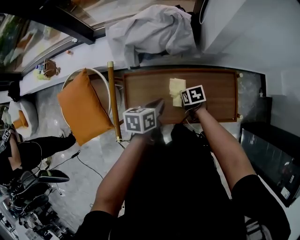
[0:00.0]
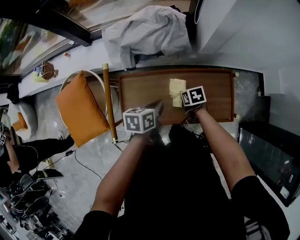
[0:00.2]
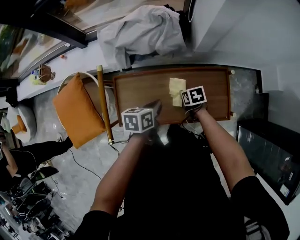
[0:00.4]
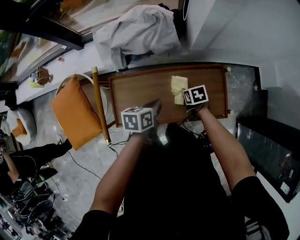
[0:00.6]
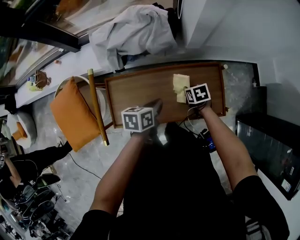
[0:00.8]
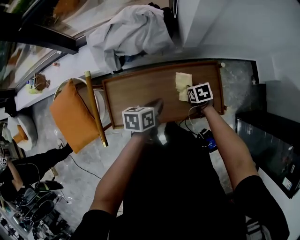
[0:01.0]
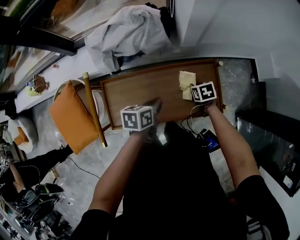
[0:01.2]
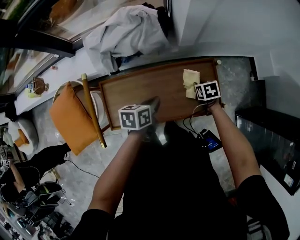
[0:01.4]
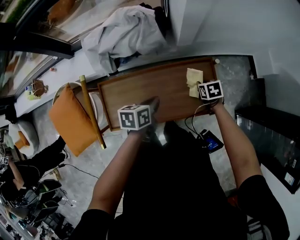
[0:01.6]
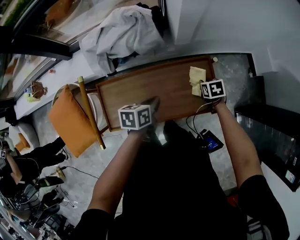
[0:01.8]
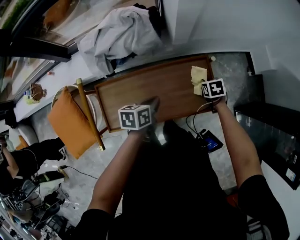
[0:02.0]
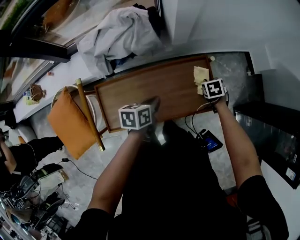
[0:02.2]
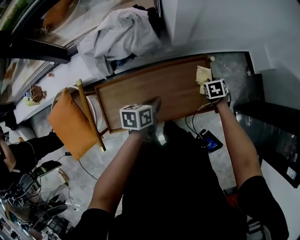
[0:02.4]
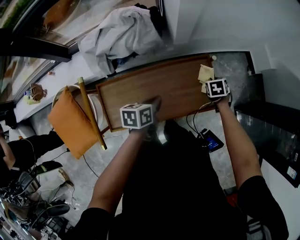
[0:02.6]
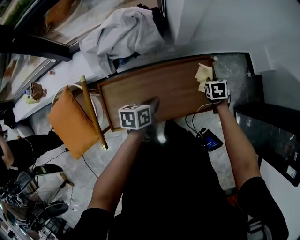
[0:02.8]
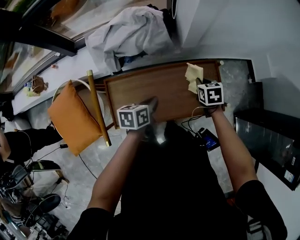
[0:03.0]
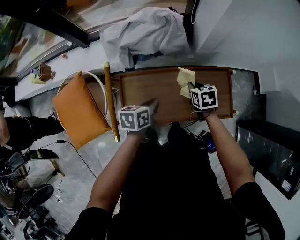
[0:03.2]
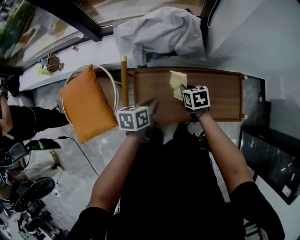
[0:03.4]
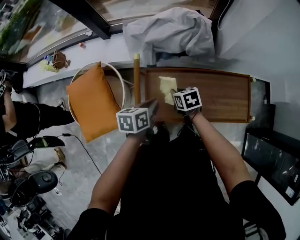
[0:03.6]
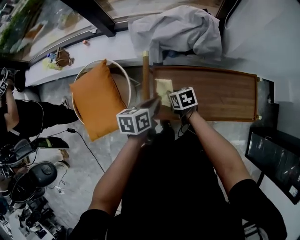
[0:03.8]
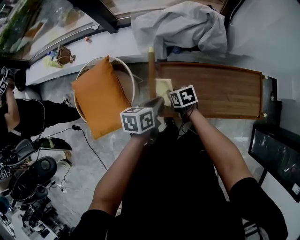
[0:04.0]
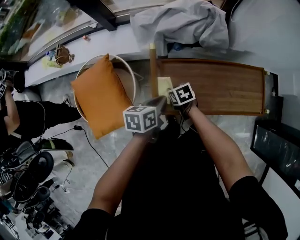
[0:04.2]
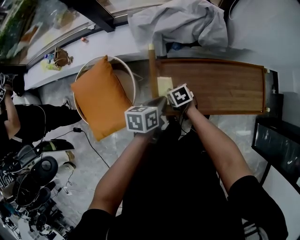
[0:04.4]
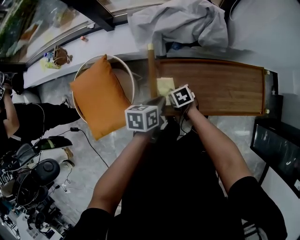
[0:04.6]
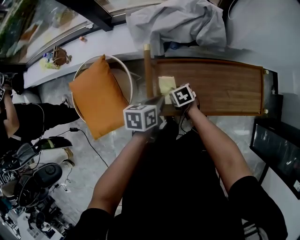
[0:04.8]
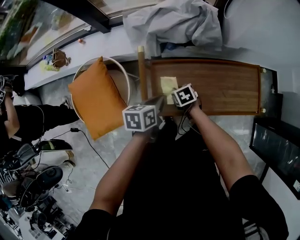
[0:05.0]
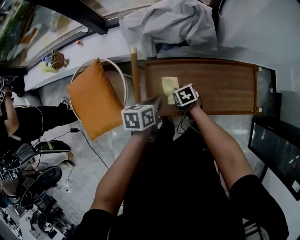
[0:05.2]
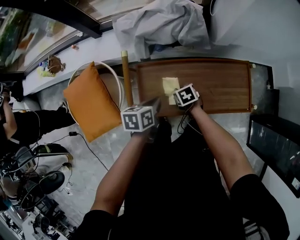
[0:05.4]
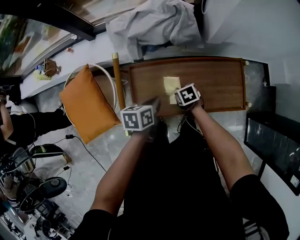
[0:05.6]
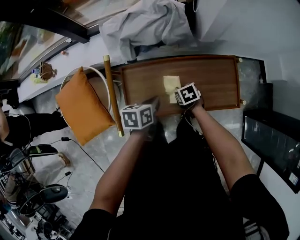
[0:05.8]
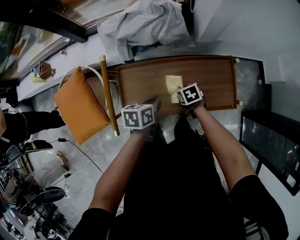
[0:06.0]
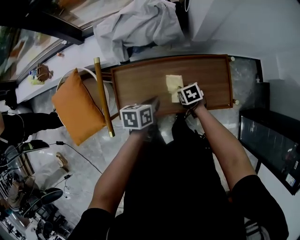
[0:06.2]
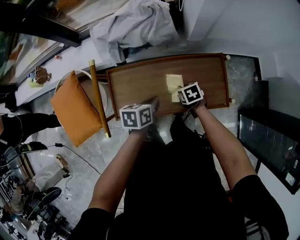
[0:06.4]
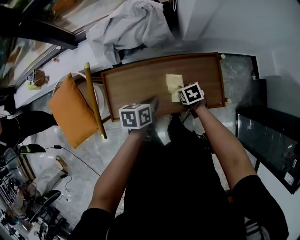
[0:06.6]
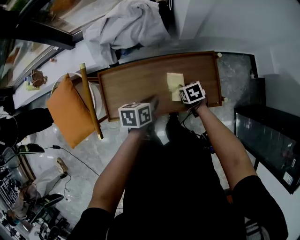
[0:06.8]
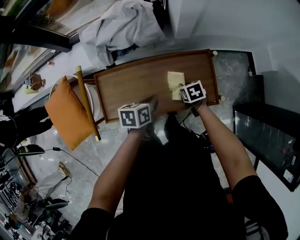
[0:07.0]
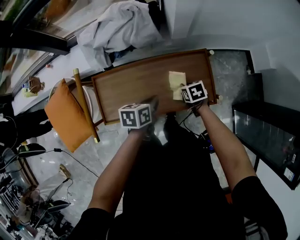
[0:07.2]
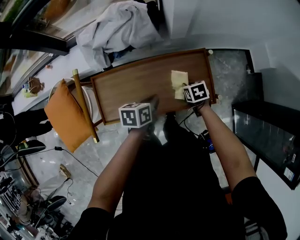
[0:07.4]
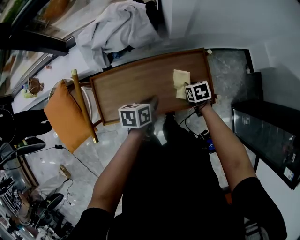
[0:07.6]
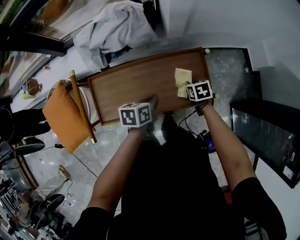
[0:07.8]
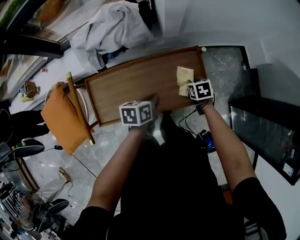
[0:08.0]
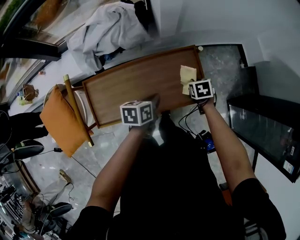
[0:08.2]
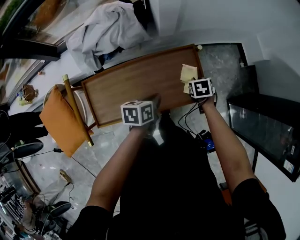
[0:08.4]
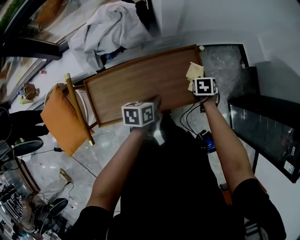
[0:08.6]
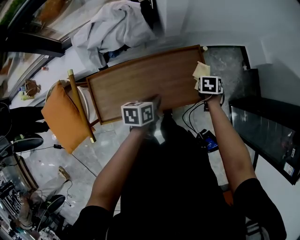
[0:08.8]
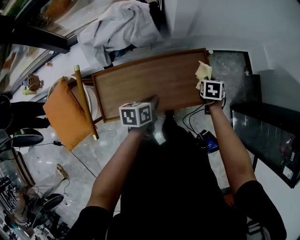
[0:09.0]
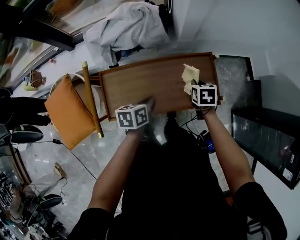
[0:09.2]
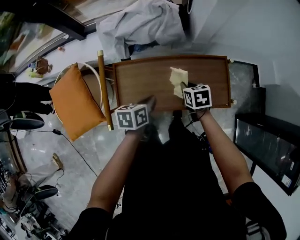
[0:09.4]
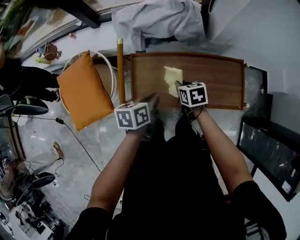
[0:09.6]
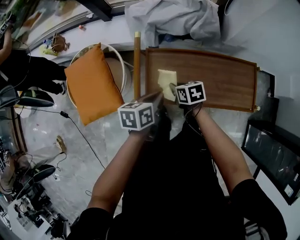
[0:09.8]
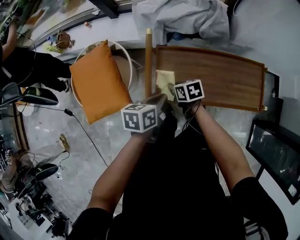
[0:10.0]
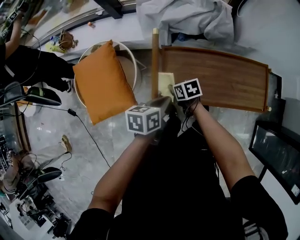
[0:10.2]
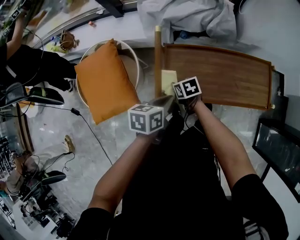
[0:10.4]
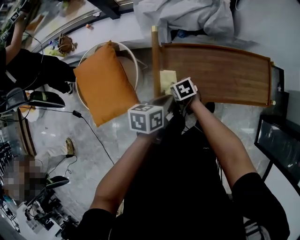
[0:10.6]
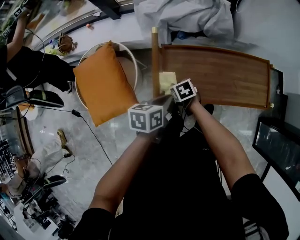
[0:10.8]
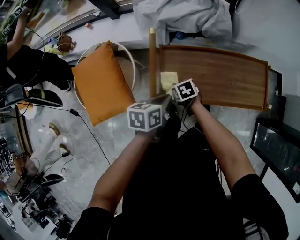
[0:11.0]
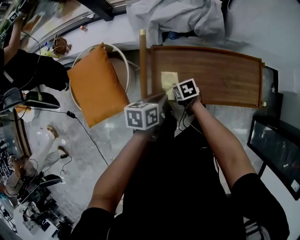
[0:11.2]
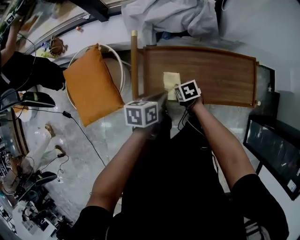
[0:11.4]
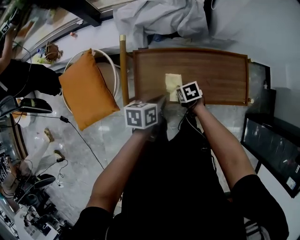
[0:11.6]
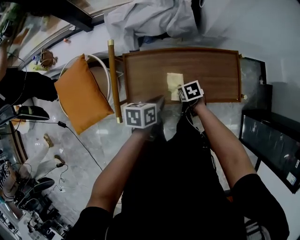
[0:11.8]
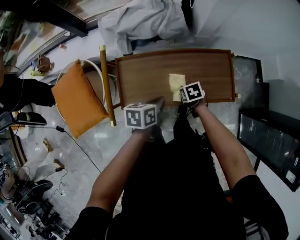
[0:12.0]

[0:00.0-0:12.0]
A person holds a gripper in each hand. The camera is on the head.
0:00.0 to 0:01.6: The right gripper travels to the right by some 20 cm, while the left gripper moves to the right, about 10 cm.
0:01.6 to 0:03.0: The right gripper moves upward and to the left, some 10 cm.
0:03.0 to 0:04.4: The left gripper moves approximately 25 cm, while the right gripper shifts by roughly 50 cm, and turns by some 30 degrees.
0:04.4 to 0:06.0: The grippers both shift to the right by roughly 25 cm.
0:06.0 to 0:07.6: The grippers both shift to the right by approximately 15 cm.
0:07.6 to 0:09.0: The right gripper ends up about 10 cm from where it was, and turns by some 30 degrees.
0:09.0 to 0:10.4: The left gripper moves approximately 30 cm. The right gripper shifts by roughly 60 cm, and changes its angle by roughly 50 degrees.
0:10.4 to 0:12.0: The left gripper shifts some 20 cm to the right. The right gripper shifts some 30 cm to the right.

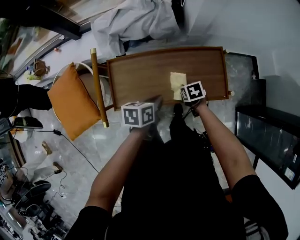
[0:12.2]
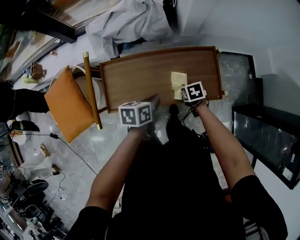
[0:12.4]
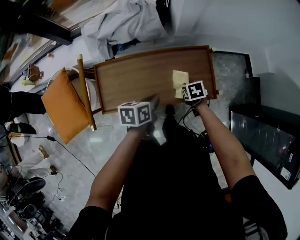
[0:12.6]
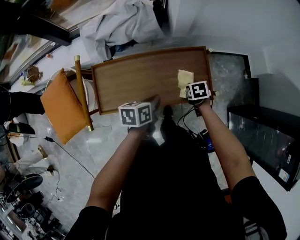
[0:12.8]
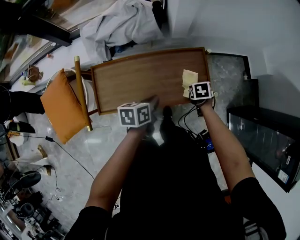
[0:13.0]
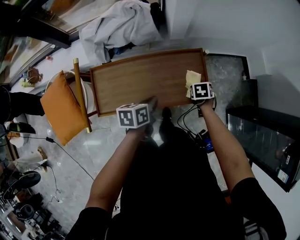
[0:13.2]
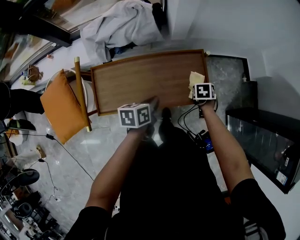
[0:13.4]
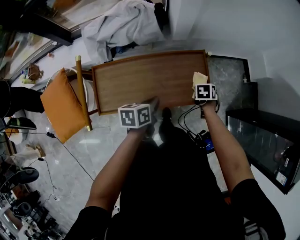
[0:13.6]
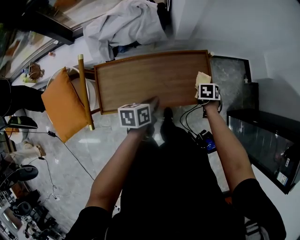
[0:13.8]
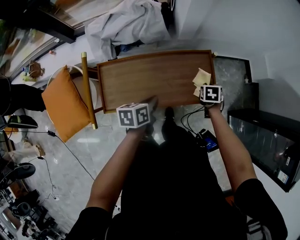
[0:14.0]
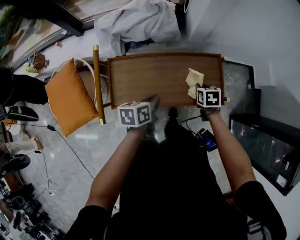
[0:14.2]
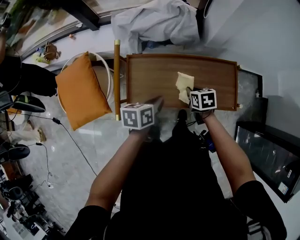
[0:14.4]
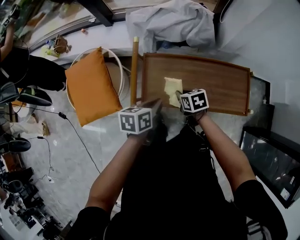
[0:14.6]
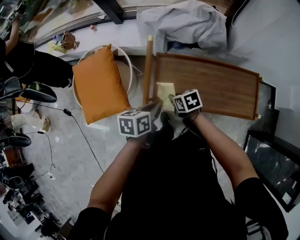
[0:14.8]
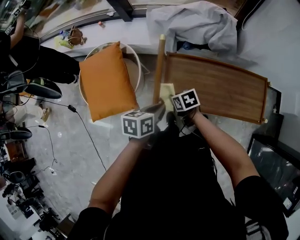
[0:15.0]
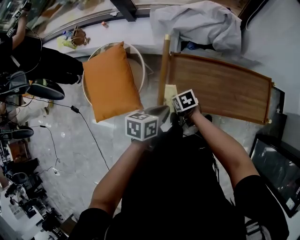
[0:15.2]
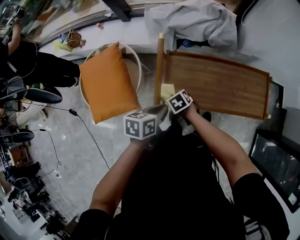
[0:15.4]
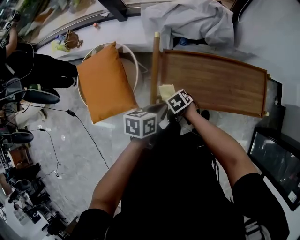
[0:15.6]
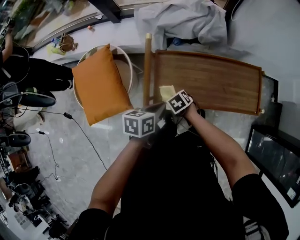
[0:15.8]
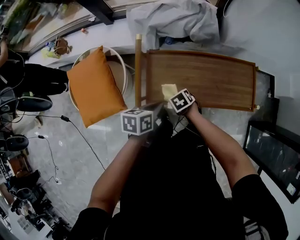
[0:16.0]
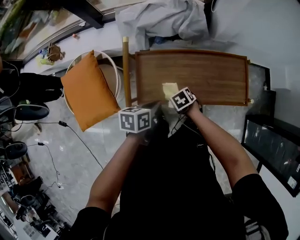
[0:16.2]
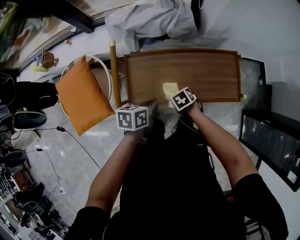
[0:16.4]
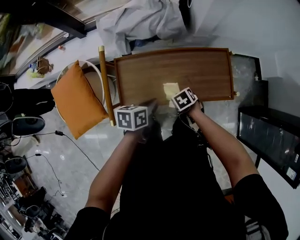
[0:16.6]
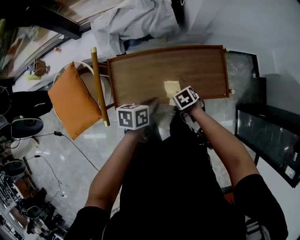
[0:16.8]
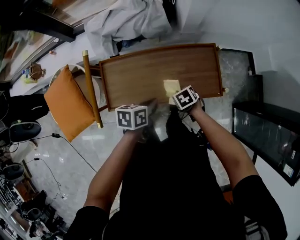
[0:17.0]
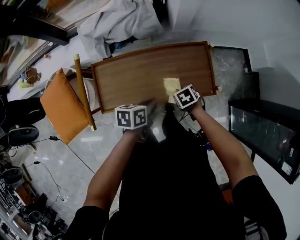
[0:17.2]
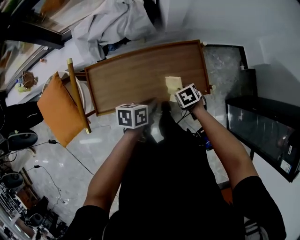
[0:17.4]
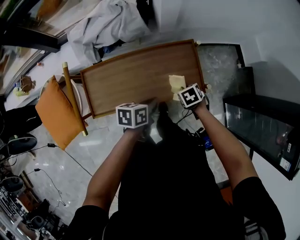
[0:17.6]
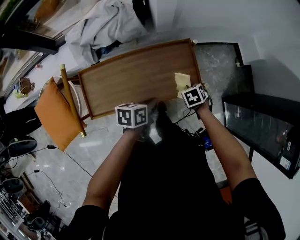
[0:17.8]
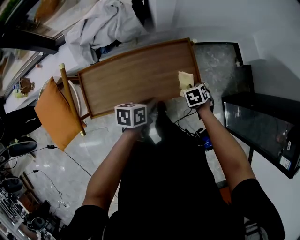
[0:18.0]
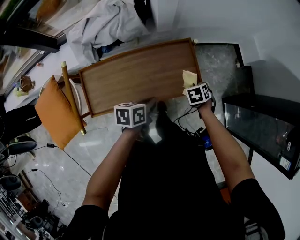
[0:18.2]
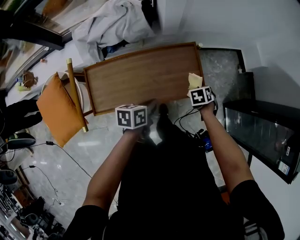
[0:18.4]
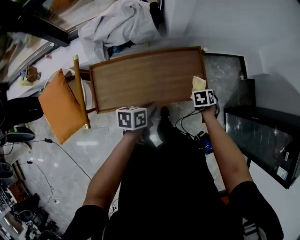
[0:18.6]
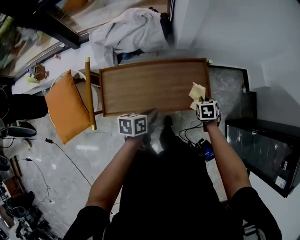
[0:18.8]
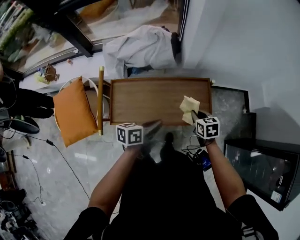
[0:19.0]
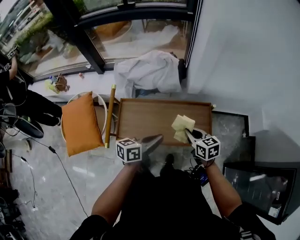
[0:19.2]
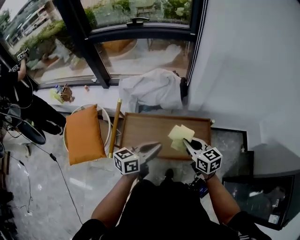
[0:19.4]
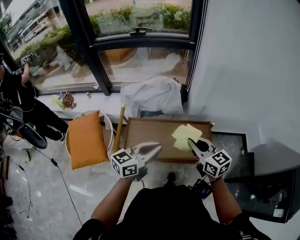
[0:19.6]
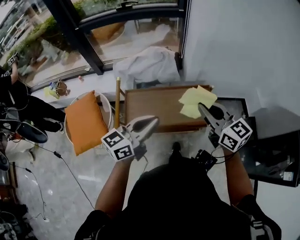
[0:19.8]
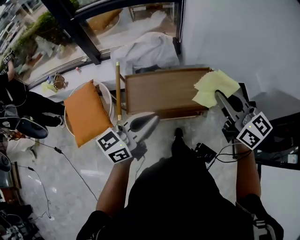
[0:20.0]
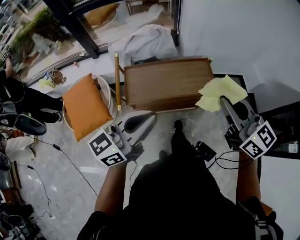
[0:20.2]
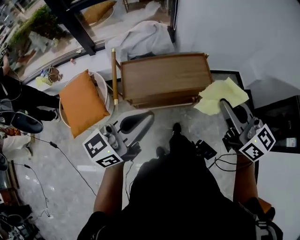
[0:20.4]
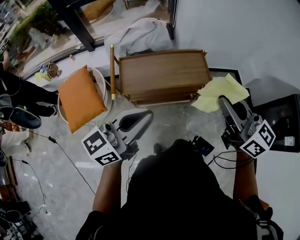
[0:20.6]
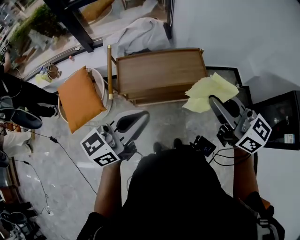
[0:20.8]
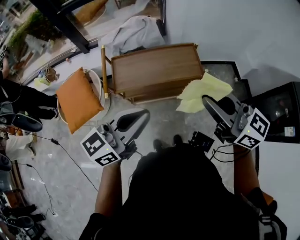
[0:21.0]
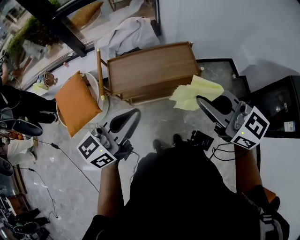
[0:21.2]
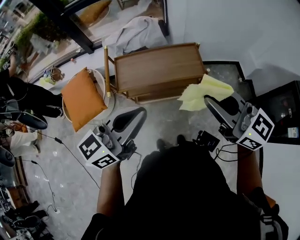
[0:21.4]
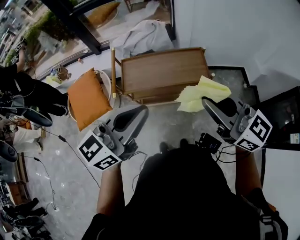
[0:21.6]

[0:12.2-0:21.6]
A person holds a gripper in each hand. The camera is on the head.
0:12.2 to 0:13.8: The right gripper changes place by about 25 cm, and swivels about 30 degrees. Meanwhile the left gripper ends up roughly 5 cm from where it was.
0:13.8 to 0:15.4: The right gripper shifts by roughly 60 cm, and turns by approximately 50 degrees; the left gripper shifts by approximately 30 cm.
0:15.4 to 0:17.0: The left gripper shifts by some 25 cm; the right gripper ends up some 35 cm from where it was.
0:17.0 to 0:18.4: The left gripper moves roughly 10 cm. Meanwhile the right gripper ends up roughly 20 cm from where it was, and swivels some 30 degrees.
0:18.4 to 0:20.0: The two grippers go some 40 cm upward. The right gripper angles its fingers upward, by some 70 degrees; the left gripper angles its fingers upward, by approximately 50 degrees.
0:20.0 to 0:21.6: The right gripper goes roughly 15 cm backward; the left gripper shifts roughly 15 cm backward and upward.

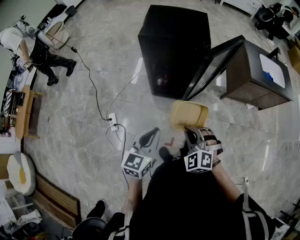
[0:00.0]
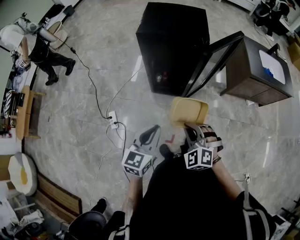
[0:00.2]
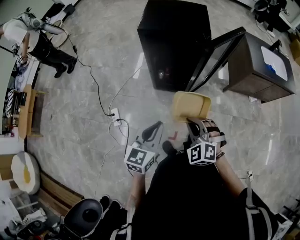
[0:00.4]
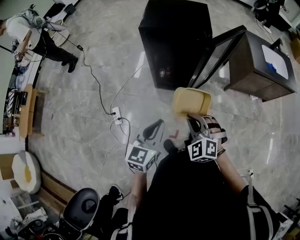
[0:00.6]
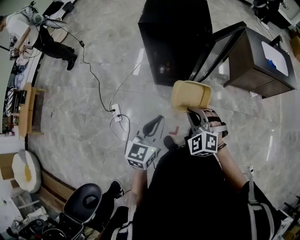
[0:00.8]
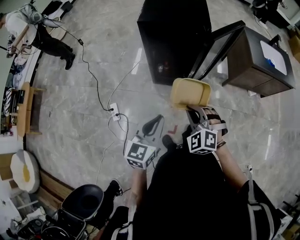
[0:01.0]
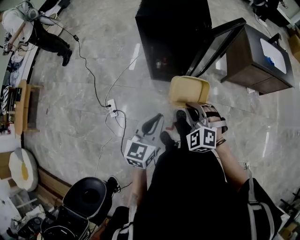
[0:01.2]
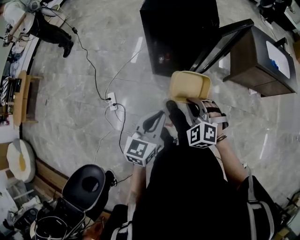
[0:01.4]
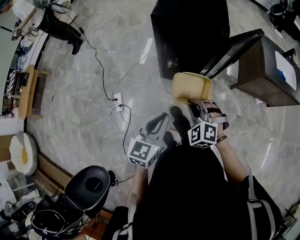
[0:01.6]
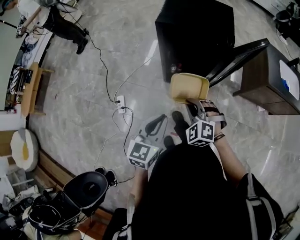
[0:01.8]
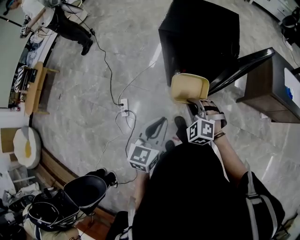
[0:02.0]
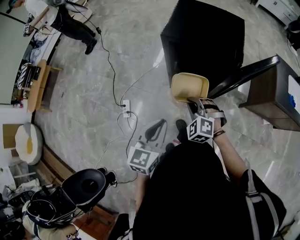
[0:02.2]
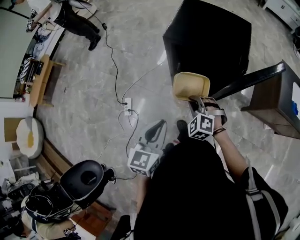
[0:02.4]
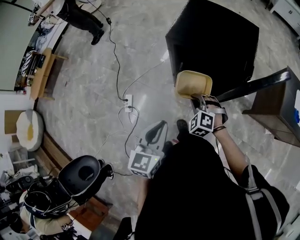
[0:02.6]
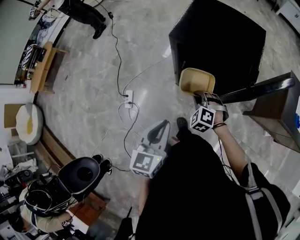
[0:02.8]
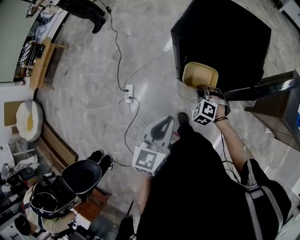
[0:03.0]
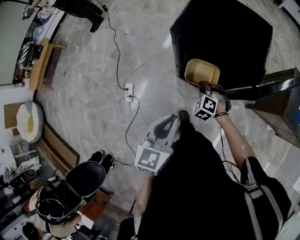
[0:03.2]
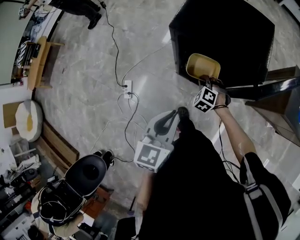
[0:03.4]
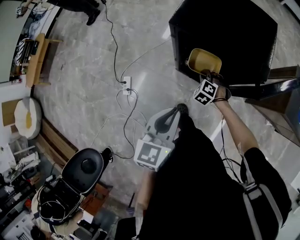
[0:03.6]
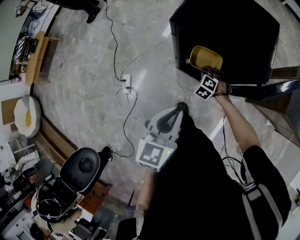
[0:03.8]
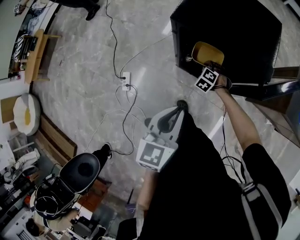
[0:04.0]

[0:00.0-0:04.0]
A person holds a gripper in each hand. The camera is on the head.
0:00.0 to 0:01.4: The grippers move only a little.
0:01.4 to 0:02.6: The grippers both shift forward by roughly 20 cm. The left gripper rotates about 20 degrees.
0:02.6 to 0:04.0: The left gripper is displaced forward by approximately 10 cm; the right gripper moves forward and downward, some 20 cm, and turns by roughly 20 degrees.
